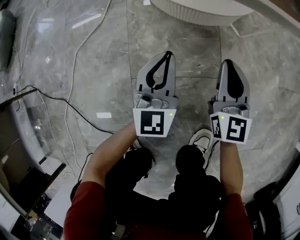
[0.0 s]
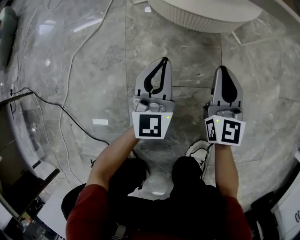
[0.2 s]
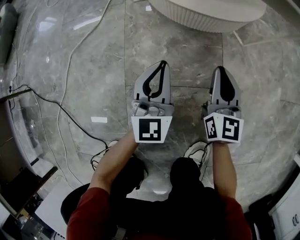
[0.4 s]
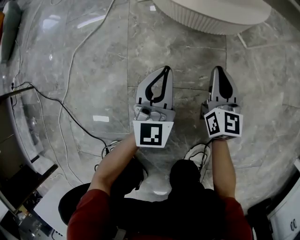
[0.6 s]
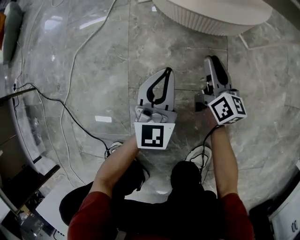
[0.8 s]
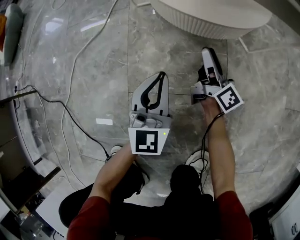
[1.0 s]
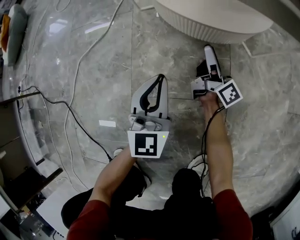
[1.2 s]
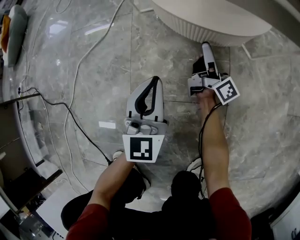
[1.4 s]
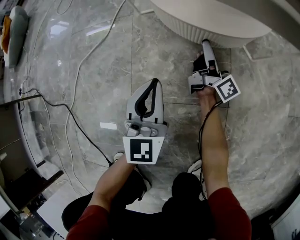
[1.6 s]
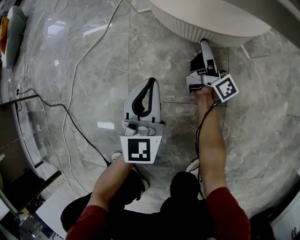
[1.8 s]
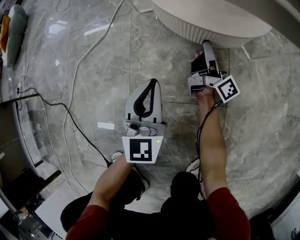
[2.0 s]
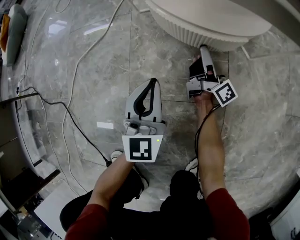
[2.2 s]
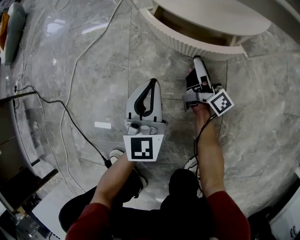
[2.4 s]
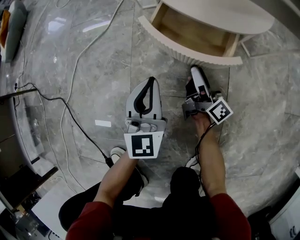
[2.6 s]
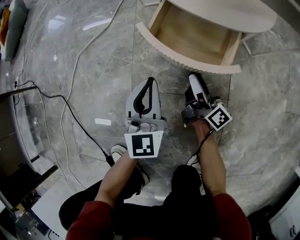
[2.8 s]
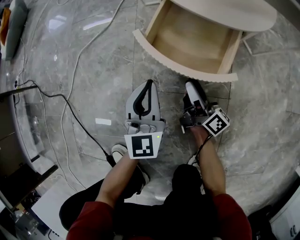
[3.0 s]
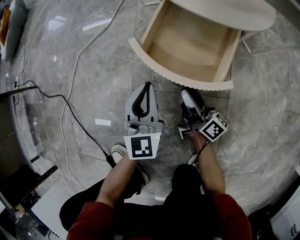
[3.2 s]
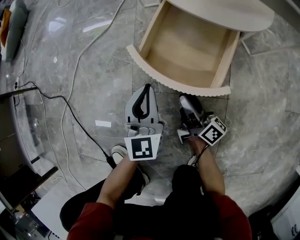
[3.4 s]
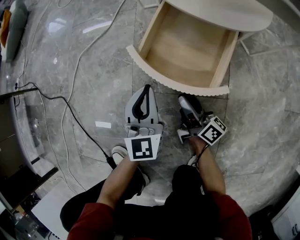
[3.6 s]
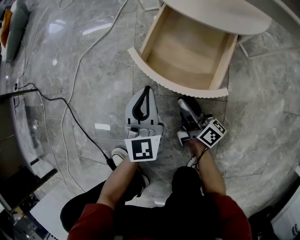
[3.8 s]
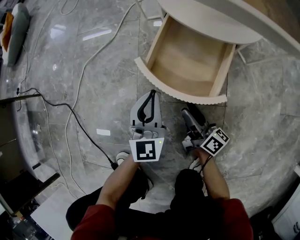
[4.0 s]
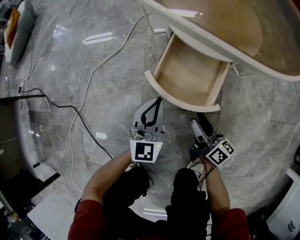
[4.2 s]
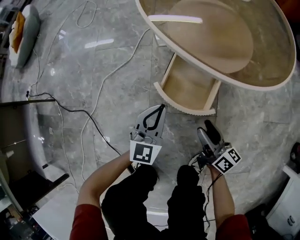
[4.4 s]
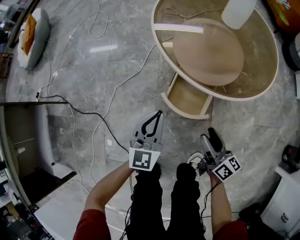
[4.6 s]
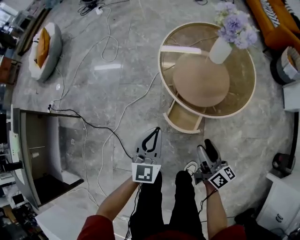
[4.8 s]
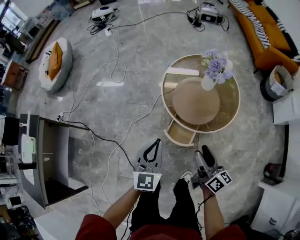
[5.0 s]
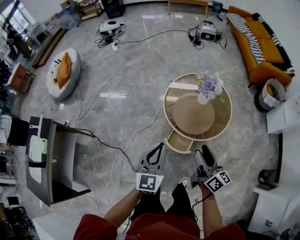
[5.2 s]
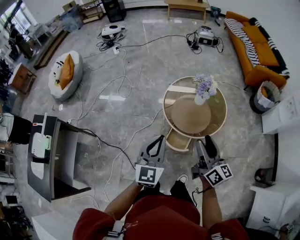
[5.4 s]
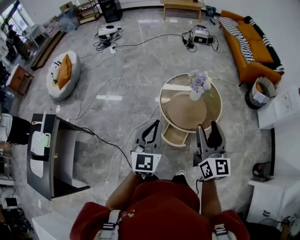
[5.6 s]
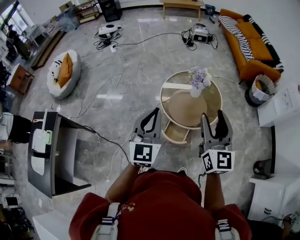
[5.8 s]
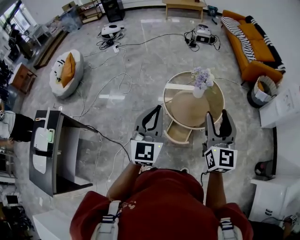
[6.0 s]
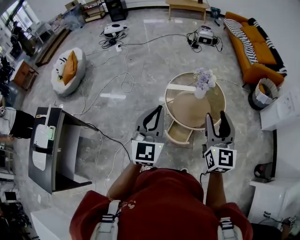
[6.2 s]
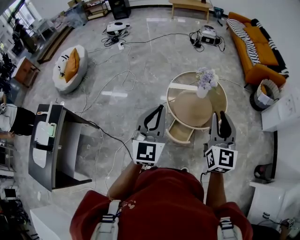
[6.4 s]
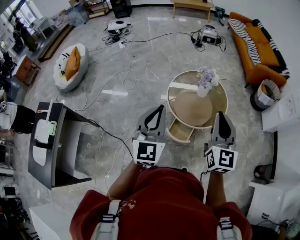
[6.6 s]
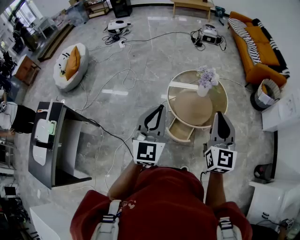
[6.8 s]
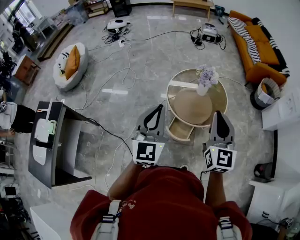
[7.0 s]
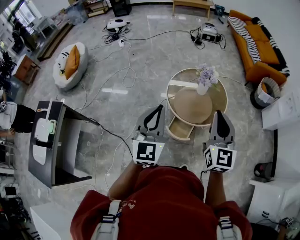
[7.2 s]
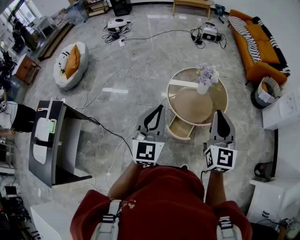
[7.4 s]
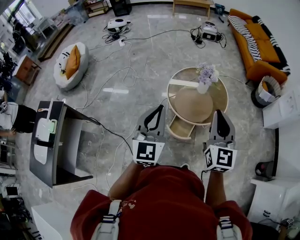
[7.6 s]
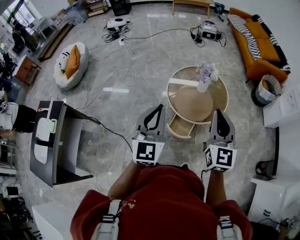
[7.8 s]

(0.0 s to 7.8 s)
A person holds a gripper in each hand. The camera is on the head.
0.0 s - 1.6 s: The right gripper heads forward and downward, covering roughly 20 cm, rolls clockwise, seen from behind, by roughly 70 degrees, and opens; the left gripper heads downward, covering roughly 5 cm.
1.6 s - 3.2 s: The left gripper moves roughly 5 cm. Meanwhile the right gripper moves backward and to the left, roughly 20 cm.
3.2 s - 4.6 s: Both grippers travel together upward, some 30 cm. The right gripper swivels roughly 20 degrees.
4.6 s - 6.2 s: Both grippers travel together upward, roughly 70 cm. The right gripper rolls counterclockwise, seen from behind, by roughly 50 degrees. Meanwhile the left gripper changes its angle by approximately 20 degrees.
6.2 s - 7.8 s: The right gripper closes.

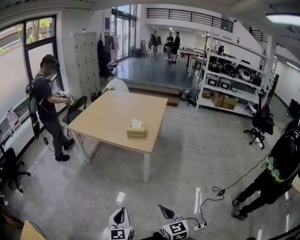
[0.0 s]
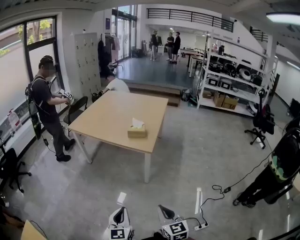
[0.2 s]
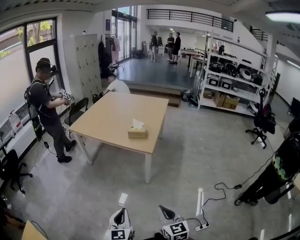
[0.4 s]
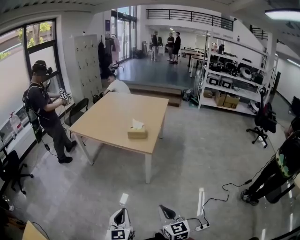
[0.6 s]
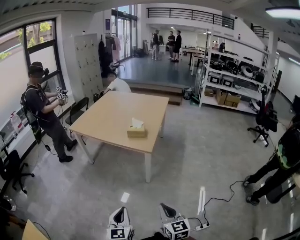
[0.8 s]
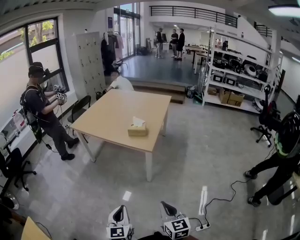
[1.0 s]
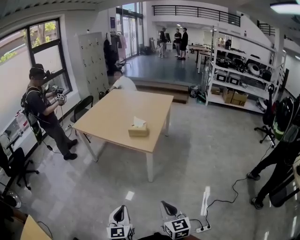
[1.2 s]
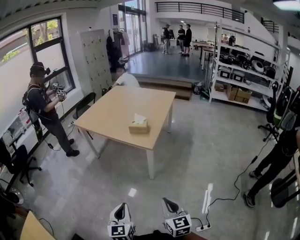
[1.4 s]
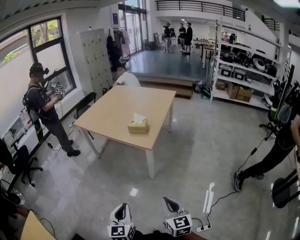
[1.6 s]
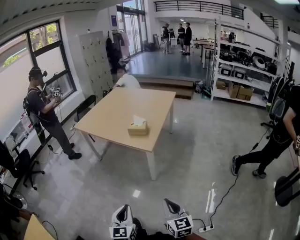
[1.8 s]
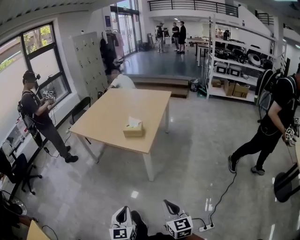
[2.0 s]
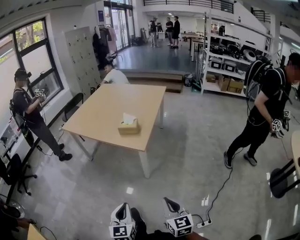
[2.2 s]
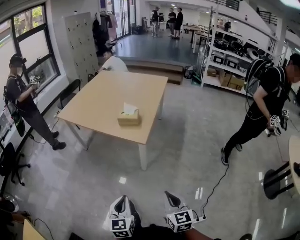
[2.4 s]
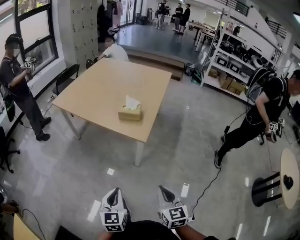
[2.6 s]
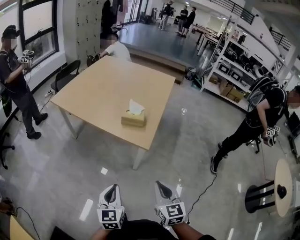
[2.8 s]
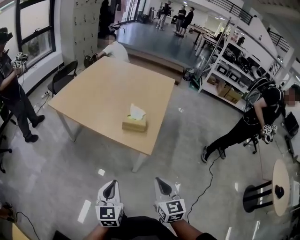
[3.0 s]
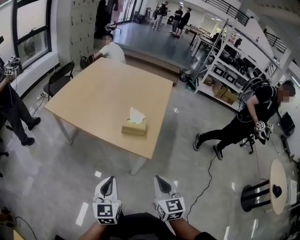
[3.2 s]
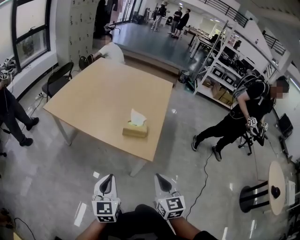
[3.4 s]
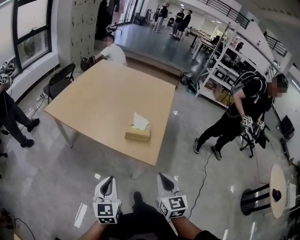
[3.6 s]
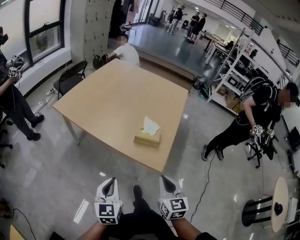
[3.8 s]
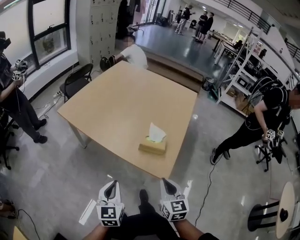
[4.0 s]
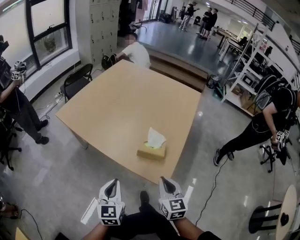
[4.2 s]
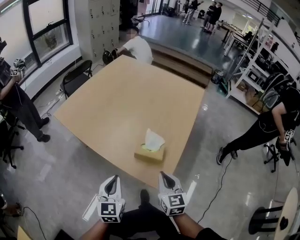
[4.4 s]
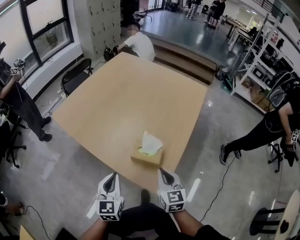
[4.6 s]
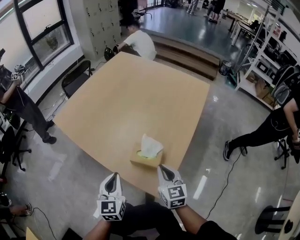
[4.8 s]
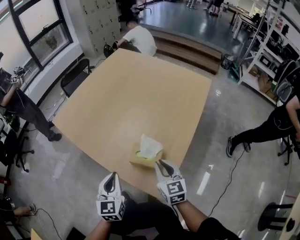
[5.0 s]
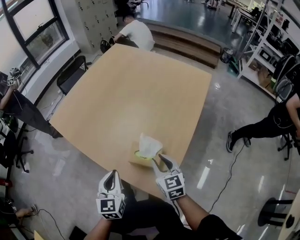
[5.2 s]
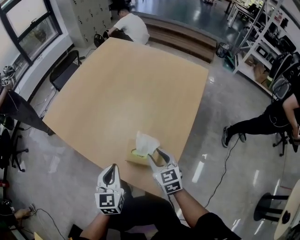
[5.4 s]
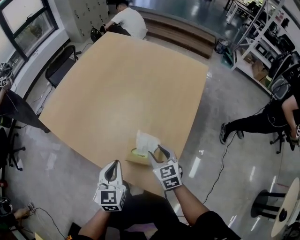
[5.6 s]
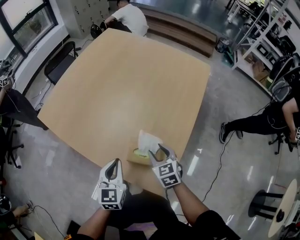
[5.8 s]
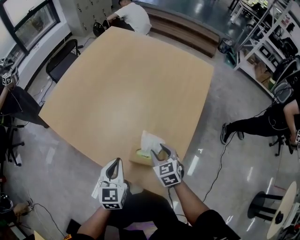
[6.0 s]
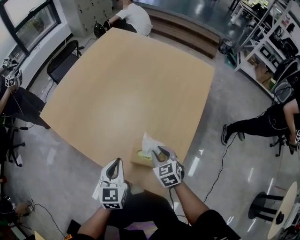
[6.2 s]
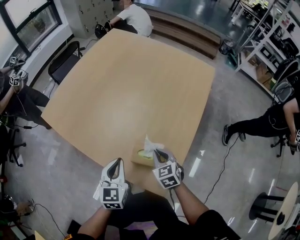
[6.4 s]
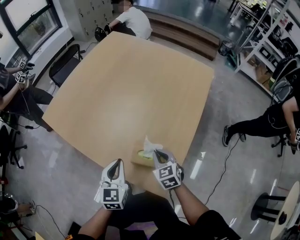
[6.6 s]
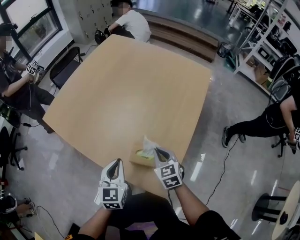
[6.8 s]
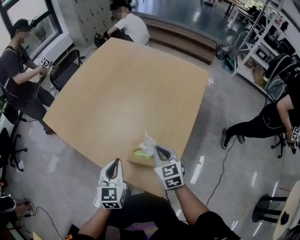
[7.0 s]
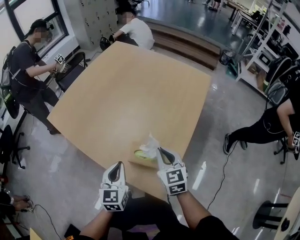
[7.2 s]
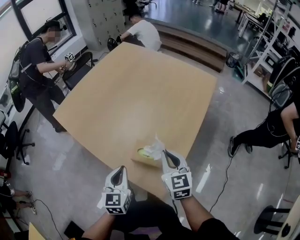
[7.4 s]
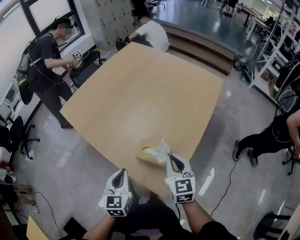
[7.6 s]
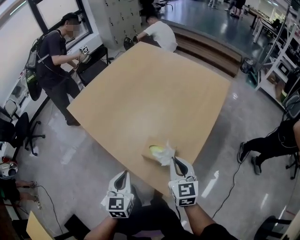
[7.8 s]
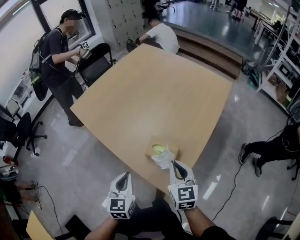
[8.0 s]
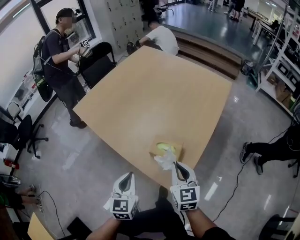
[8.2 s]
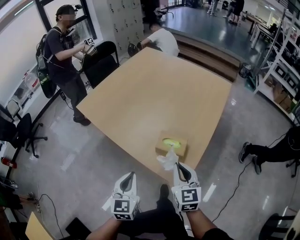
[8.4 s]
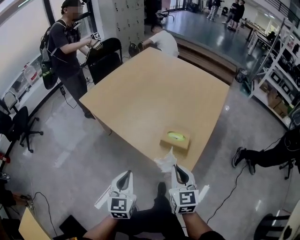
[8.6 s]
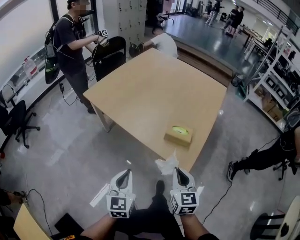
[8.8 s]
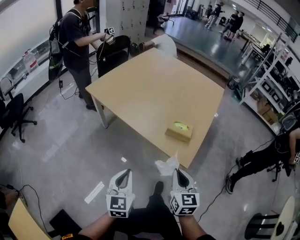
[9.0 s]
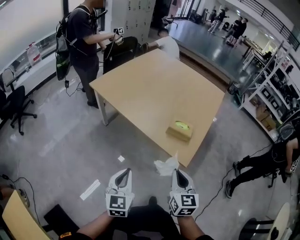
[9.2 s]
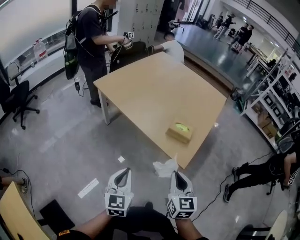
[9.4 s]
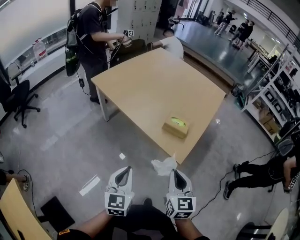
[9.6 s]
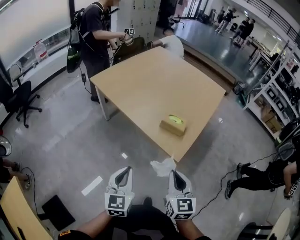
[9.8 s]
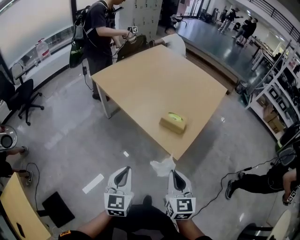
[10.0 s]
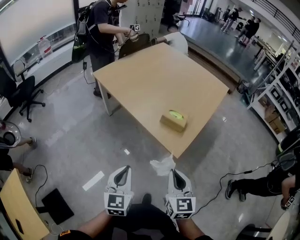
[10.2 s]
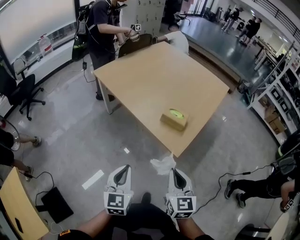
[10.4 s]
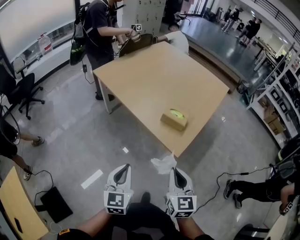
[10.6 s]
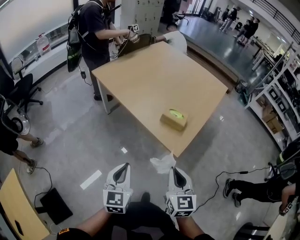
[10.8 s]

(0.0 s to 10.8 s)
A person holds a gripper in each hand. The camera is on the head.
0.0 s - 1.6 s: The two grippers go approximately 10 cm to the right.
1.6 s - 3.0 s: Both grippers travel together forward, approximately 25 cm.
3.0 s - 4.6 s: The two grippers go some 30 cm forward.
4.6 s - 6.2 s: The left gripper heads forward, covering roughly 10 cm. Meanwhile the right gripper is displaced forward and downward by roughly 15 cm, rotates roughly 30 degrees, and opens up.
6.2 s - 7.8 s: The left gripper moves backward, some 10 cm. The right gripper goes about 15 cm upward and backward, rotates approximately 20 degrees, and closes.
7.8 s - 9.2 s: Both grippers move backward and to the left, about 25 cm.
9.2 s - 10.8 s: The left gripper moves to the right, about 5 cm. The right gripper shifts by approximately 5 cm.

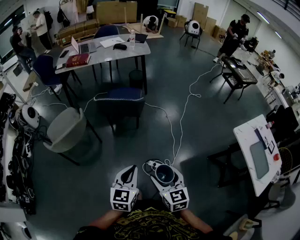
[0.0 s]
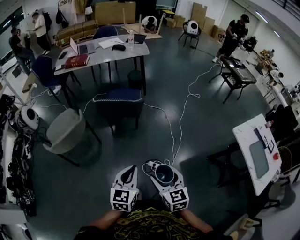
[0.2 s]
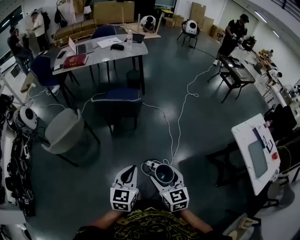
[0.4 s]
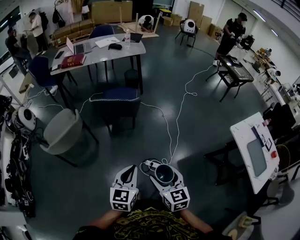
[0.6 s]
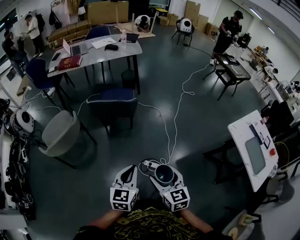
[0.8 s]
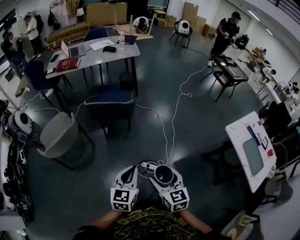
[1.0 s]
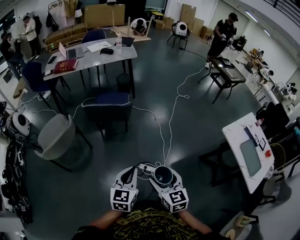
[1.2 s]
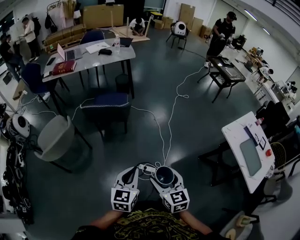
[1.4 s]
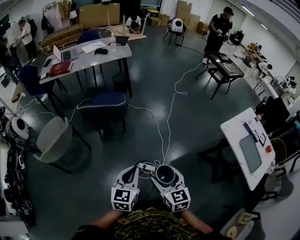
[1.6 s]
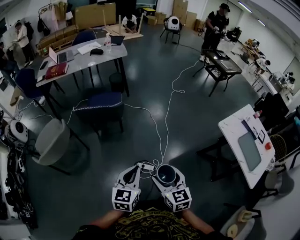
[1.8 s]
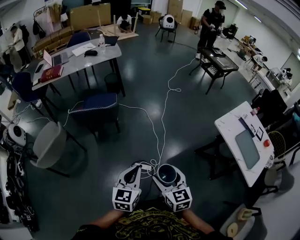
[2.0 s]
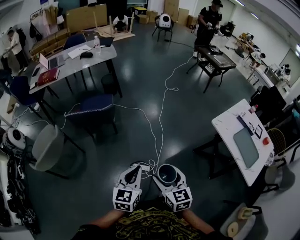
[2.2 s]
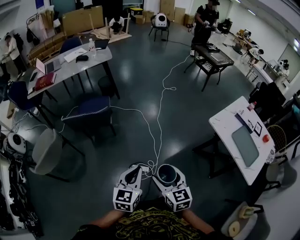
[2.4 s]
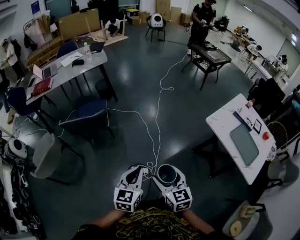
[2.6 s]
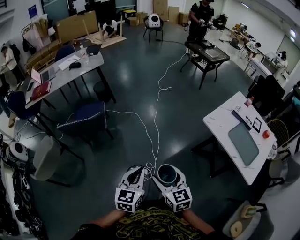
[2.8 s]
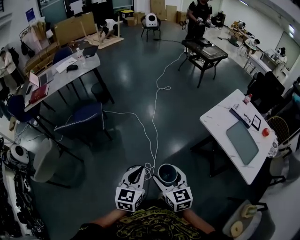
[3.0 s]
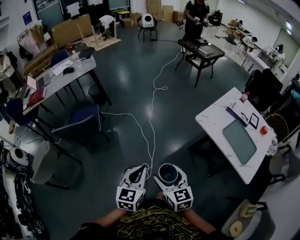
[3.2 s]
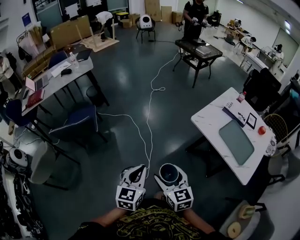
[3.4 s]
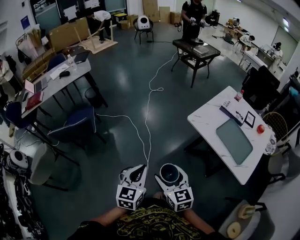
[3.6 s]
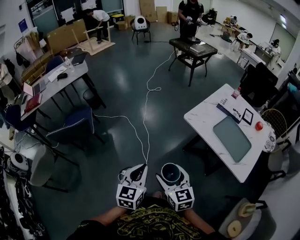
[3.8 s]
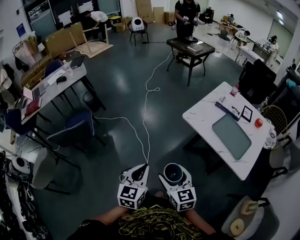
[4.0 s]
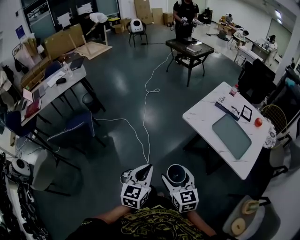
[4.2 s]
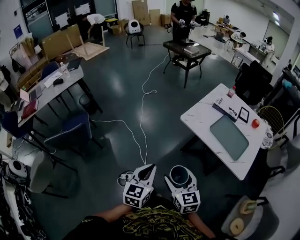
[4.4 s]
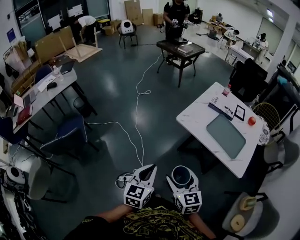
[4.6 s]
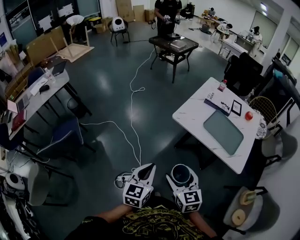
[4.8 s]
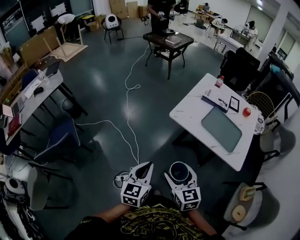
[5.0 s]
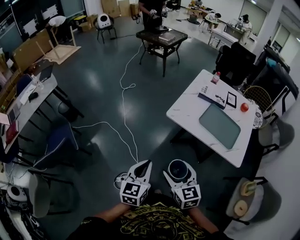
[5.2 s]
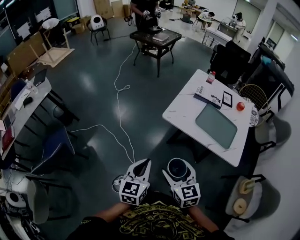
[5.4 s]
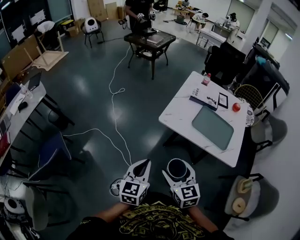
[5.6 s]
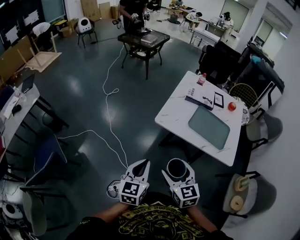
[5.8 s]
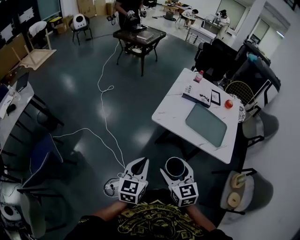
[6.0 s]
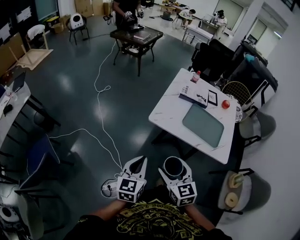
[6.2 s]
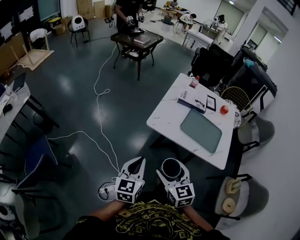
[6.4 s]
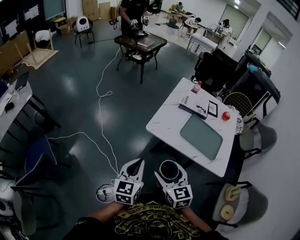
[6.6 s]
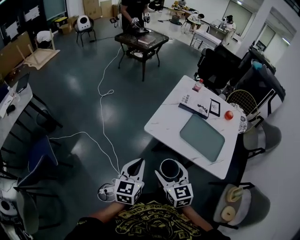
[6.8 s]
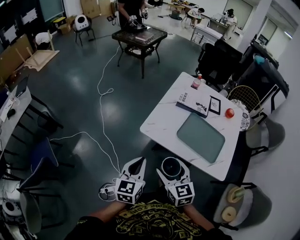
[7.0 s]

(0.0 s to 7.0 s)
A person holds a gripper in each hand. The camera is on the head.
0.0 s - 1.4 s: The two grippers go roughly 5 cm to the right.
1.4 s - 2.8 s: Both grippers travel together to the right, approximately 20 cm.
2.8 s - 4.2 s: The grippers both shift to the right by approximately 20 cm.
4.2 s - 5.6 s: The grippers both shift forward by some 10 cm.
5.6 s - 7.0 s: The two grippers go roughly 15 cm forward and to the right.
